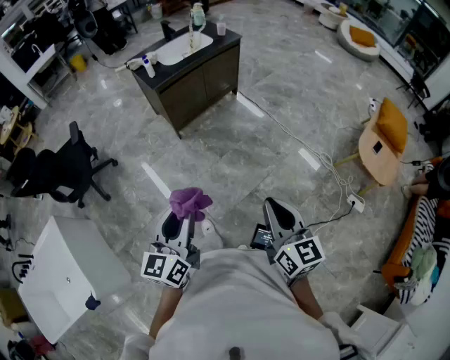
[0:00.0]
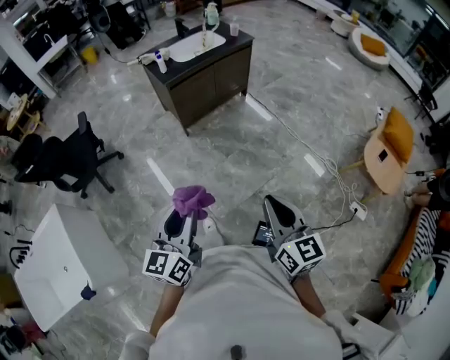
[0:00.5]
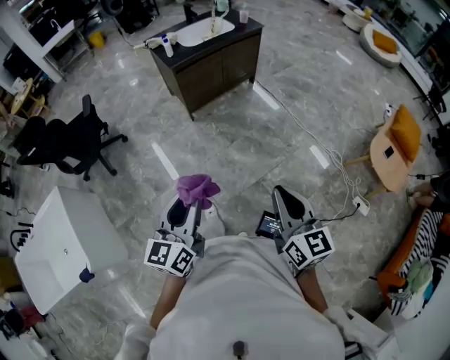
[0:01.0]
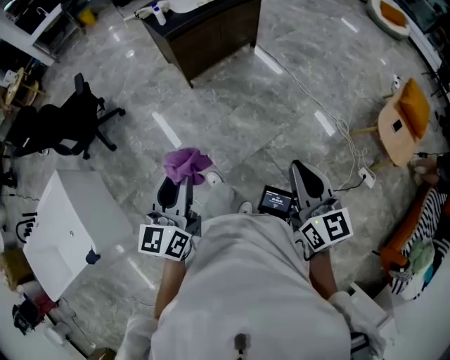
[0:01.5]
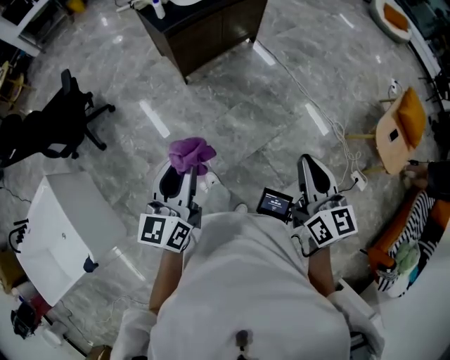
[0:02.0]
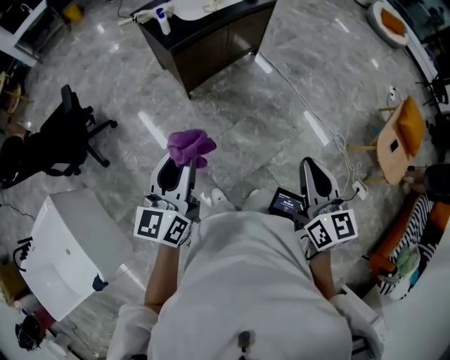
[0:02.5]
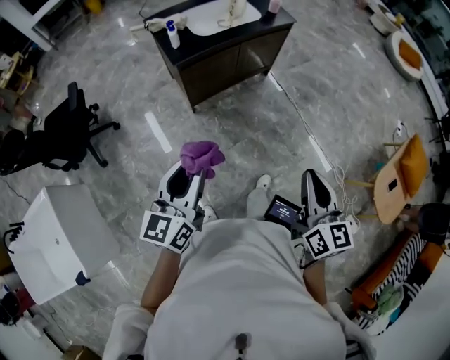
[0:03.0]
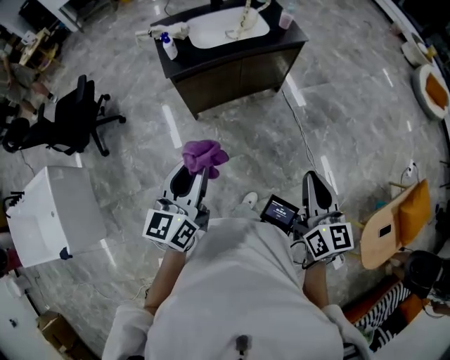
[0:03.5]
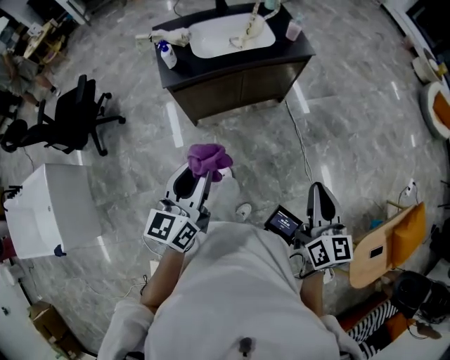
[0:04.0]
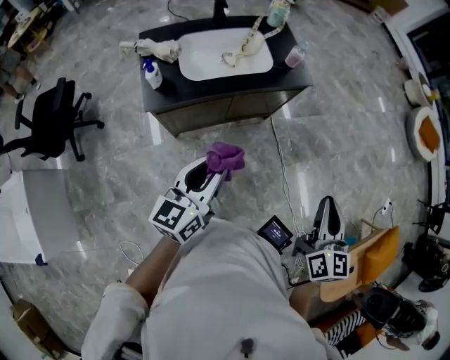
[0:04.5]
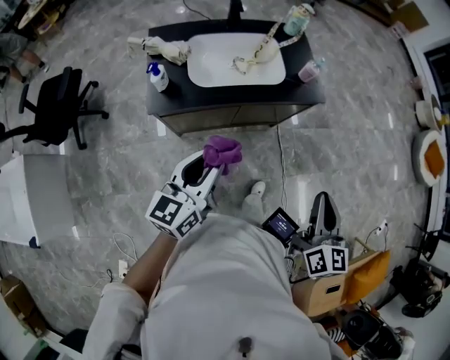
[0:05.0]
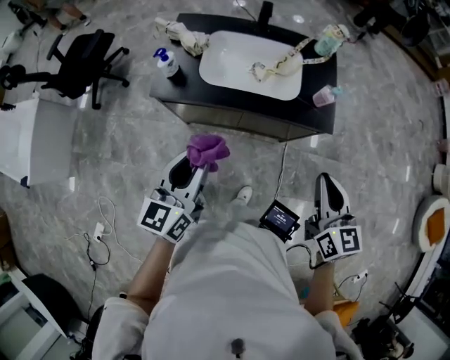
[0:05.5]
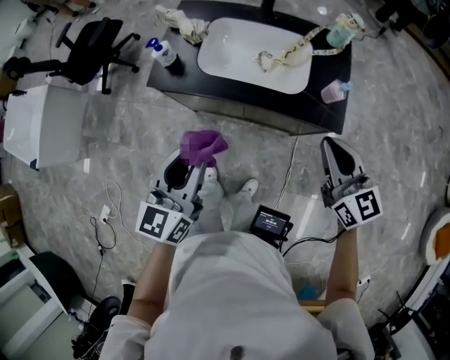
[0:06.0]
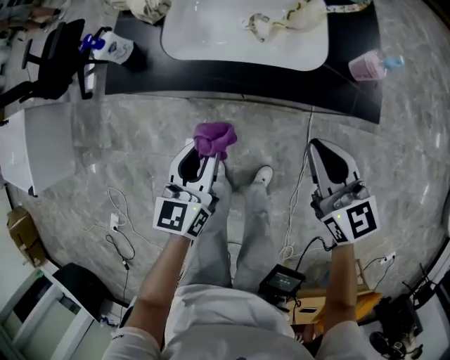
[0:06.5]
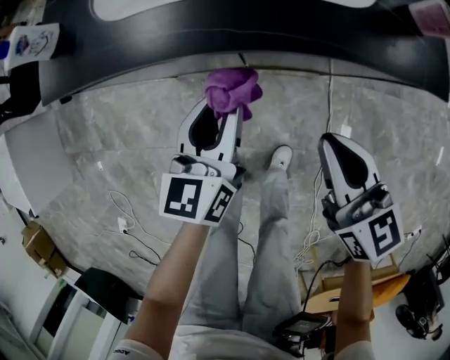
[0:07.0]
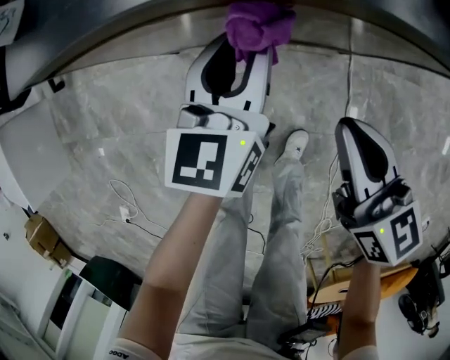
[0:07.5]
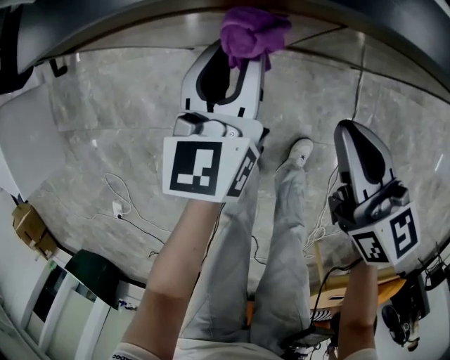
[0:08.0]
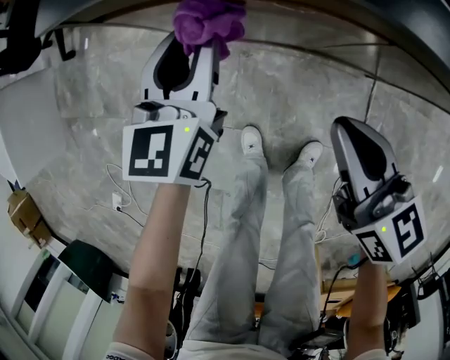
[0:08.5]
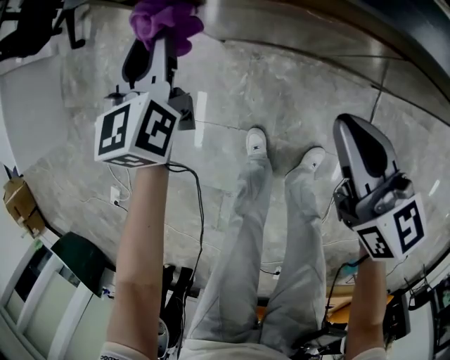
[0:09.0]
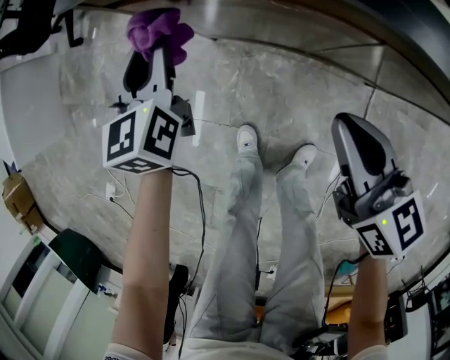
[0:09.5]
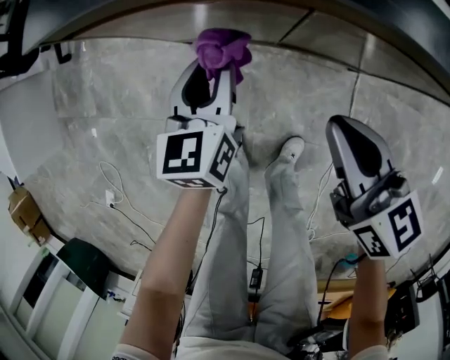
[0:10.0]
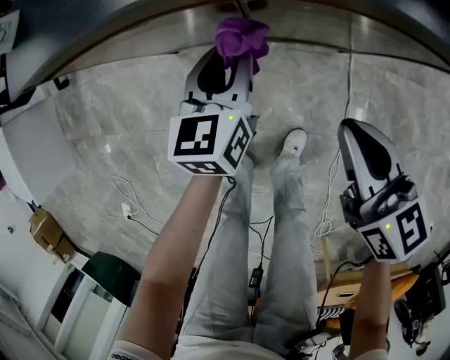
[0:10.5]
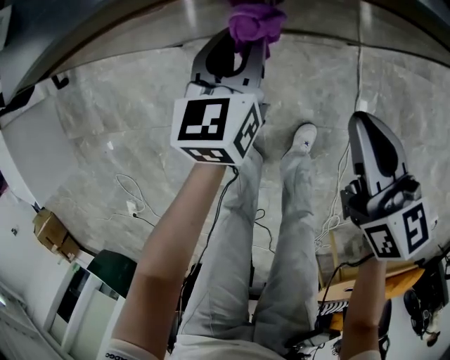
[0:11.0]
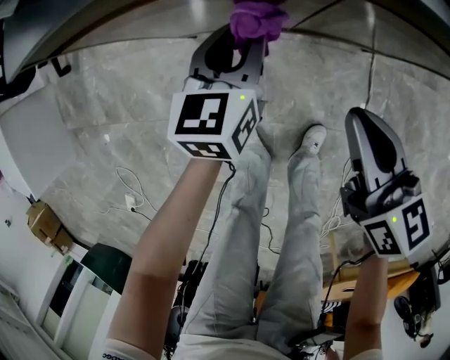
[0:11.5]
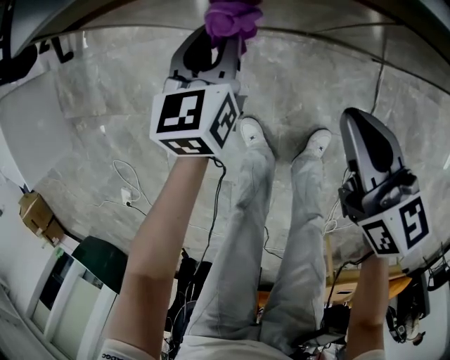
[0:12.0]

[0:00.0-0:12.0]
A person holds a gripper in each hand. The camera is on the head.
0:00.0 to 0:02.0: Both grippers travel together forward, about 10 cm.
0:02.0 to 0:04.0: The two grippers travel together, forward and to the right, approximately 40 cm.
0:04.0 to 0:06.0: The right gripper changes place by some 50 cm, and swivels roughly 50 degrees, while the left gripper changes place by approximately 35 cm, and rotates approximately 30 degrees.
0:06.0 to 0:08.0: The right gripper shifts roughly 50 cm downward and to the left, and swivels about 30 degrees. The left gripper goes roughly 40 cm downward.
0:08.0 to 0:10.0: The right gripper travels to the left and back again, approximately 10 cm each way; the left gripper goes to the left and returns, about 20 cm each way.
0:10.0 to 0:12.0: The left gripper heads to the left and forward, covering approximately 10 cm. Meanwhile the right gripper travels to the left by about 5 cm.

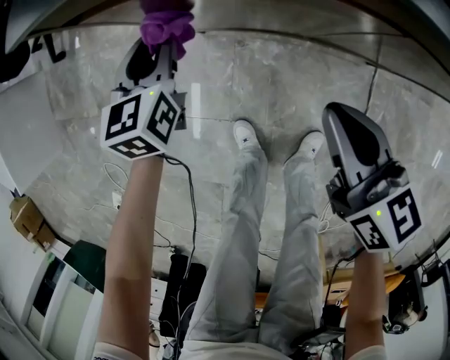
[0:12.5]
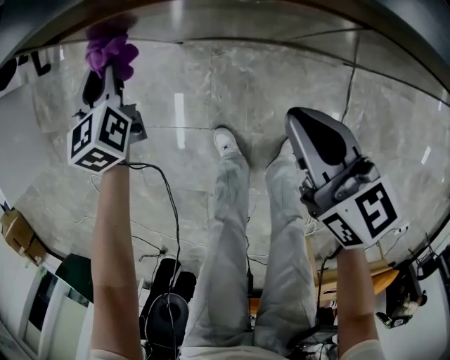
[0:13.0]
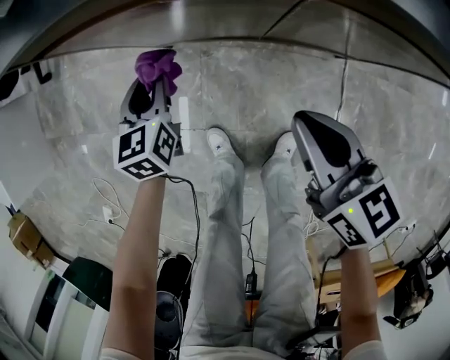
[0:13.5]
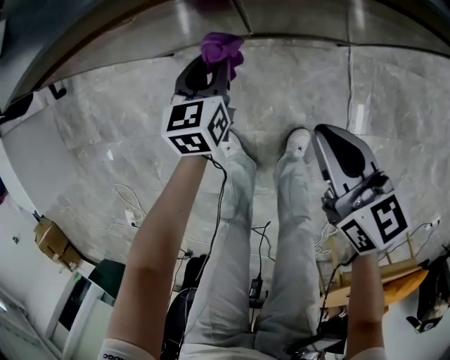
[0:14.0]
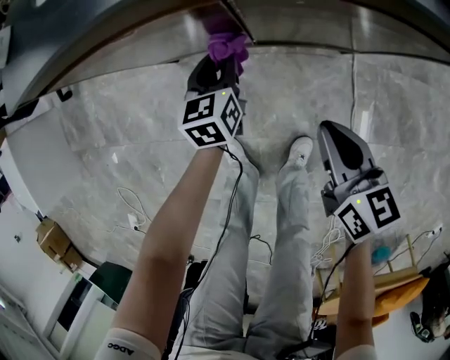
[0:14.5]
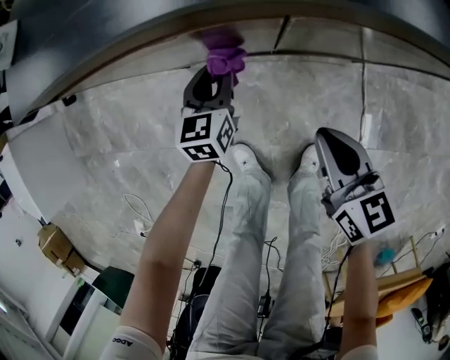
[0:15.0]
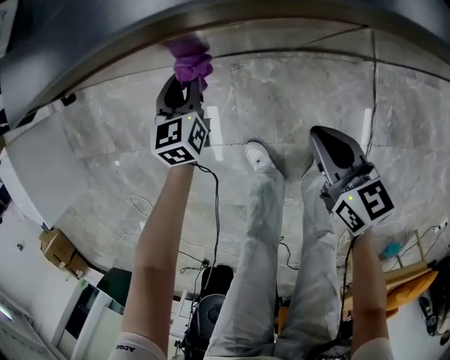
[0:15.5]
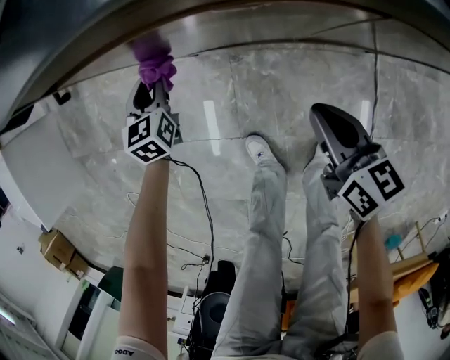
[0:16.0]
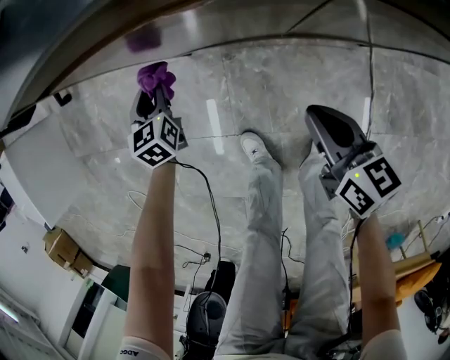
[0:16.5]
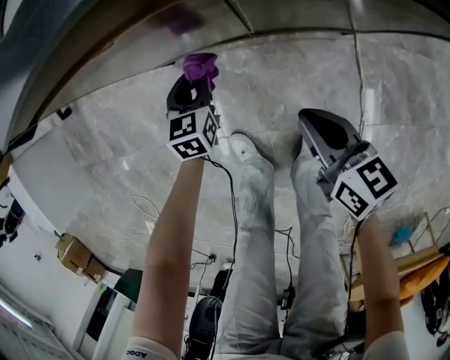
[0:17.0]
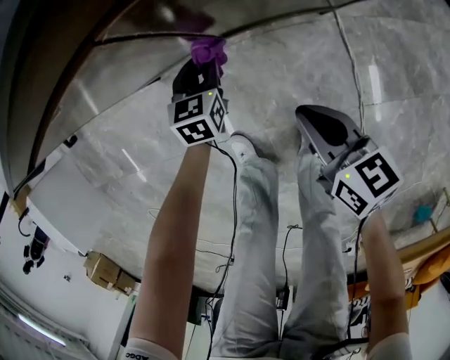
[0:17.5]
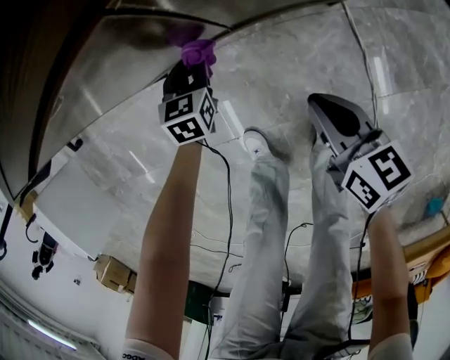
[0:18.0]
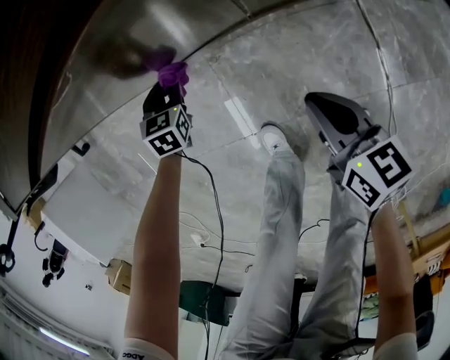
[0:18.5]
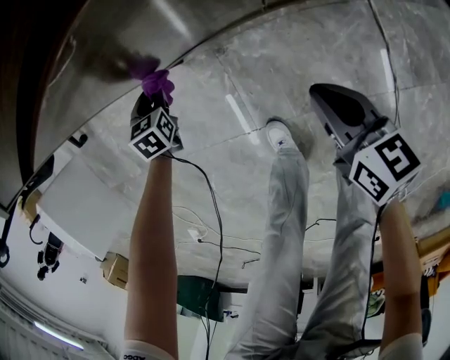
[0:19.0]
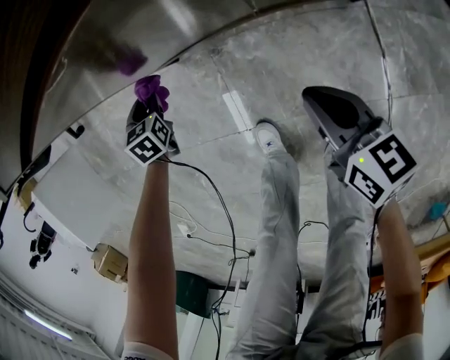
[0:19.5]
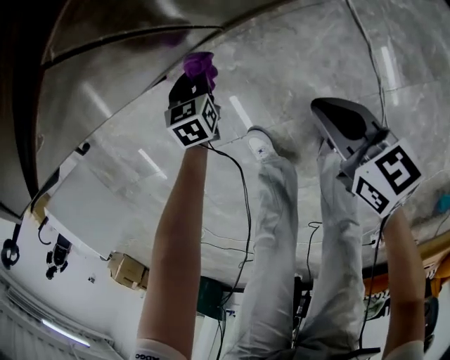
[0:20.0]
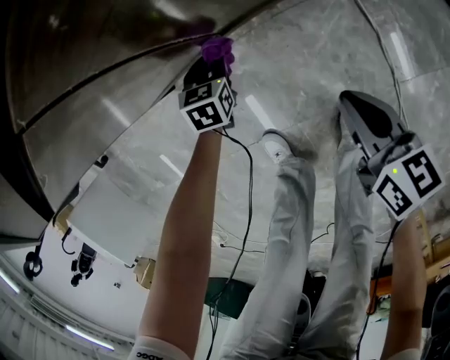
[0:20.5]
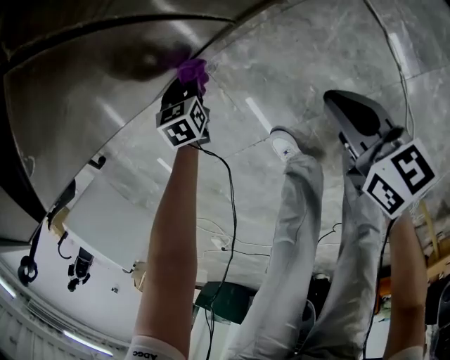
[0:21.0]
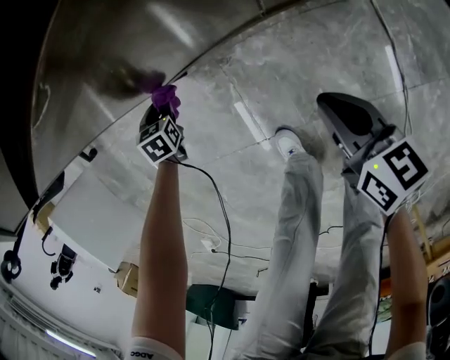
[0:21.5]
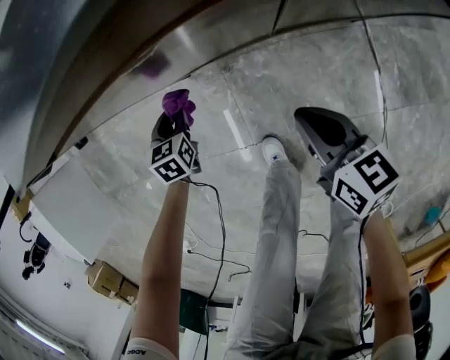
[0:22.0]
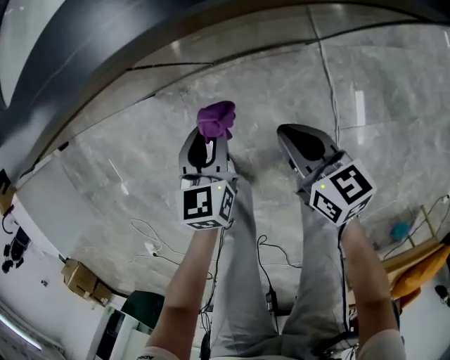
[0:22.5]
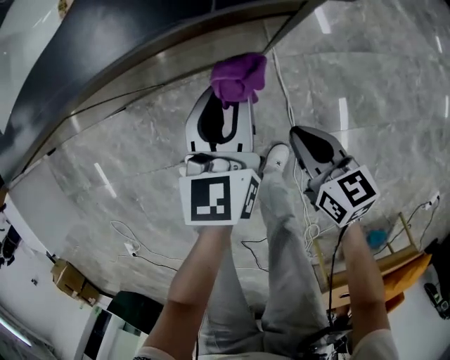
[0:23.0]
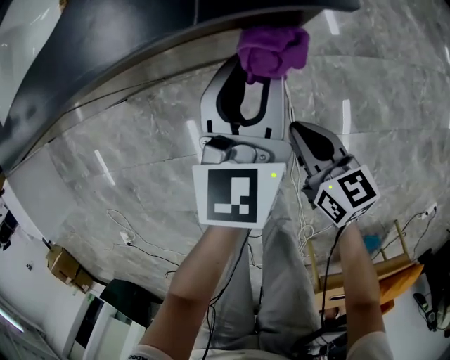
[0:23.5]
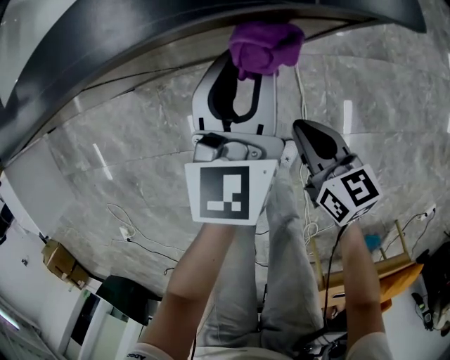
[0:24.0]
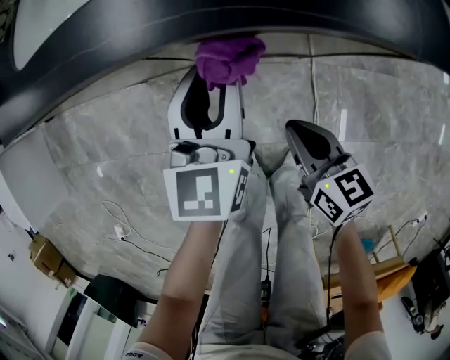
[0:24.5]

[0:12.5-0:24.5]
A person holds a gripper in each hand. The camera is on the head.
0:12.5 to 0:14.5: The right gripper goes approximately 20 cm to the right, backward and downward. The left gripper moves to the right, roughly 25 cm.
0:14.5 to 0:16.5: The left gripper moves to the left, roughly 25 cm. The right gripper moves to the left and forward, about 10 cm.
0:16.5 to 0:18.5: The left gripper shifts approximately 10 cm downward, travels to the right and back again, approximately 30 cm each way, and changes its angle by roughly 30 degrees. The right gripper moves downward, about 5 cm, and moves some 10 cm to the right and comes back.
0:18.5 to 0:20.5: The left gripper ends up some 20 cm from where it was. Meanwhile the right gripper moves about 15 cm.
0:20.5 to 0:22.5: The left gripper goes some 25 cm upward and backward, moves roughly 30 cm to the left and comes back, and changes its angle by some 20 degrees. The right gripper goes some 10 cm upward, and goes to the left and returns, some 15 cm each way.
0:22.5 to 0:24.5: The left gripper goes roughly 20 cm upward and forward, moves some 35 cm to the right and comes back, and rotates about 20 degrees, while the right gripper reaches about 25 cm to the right, then returns.

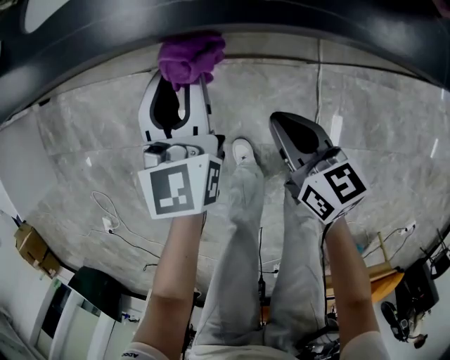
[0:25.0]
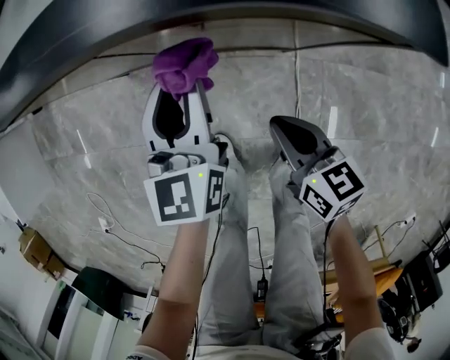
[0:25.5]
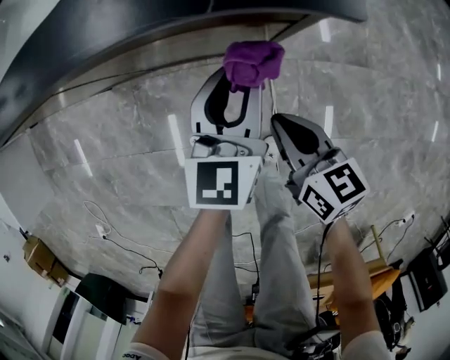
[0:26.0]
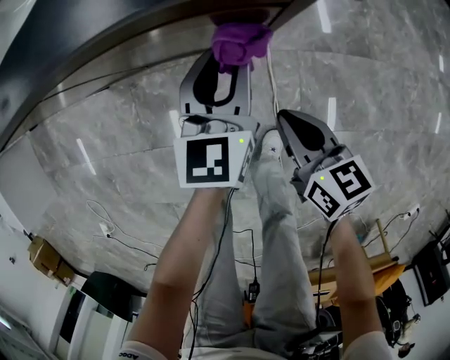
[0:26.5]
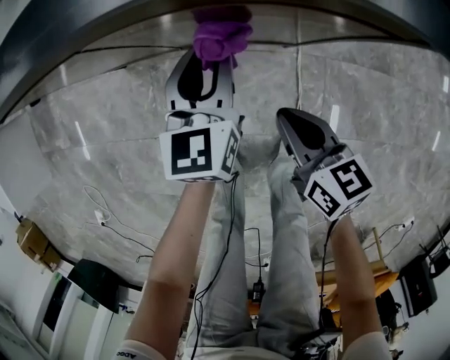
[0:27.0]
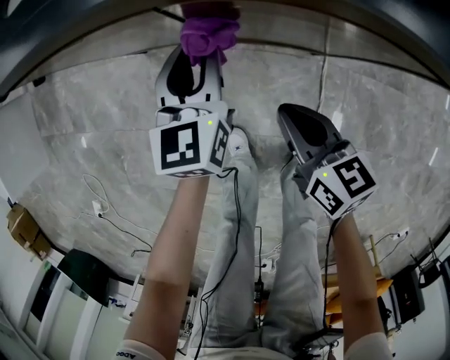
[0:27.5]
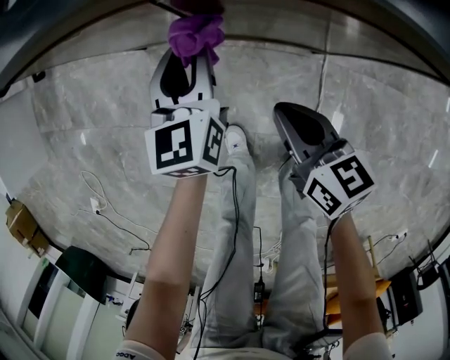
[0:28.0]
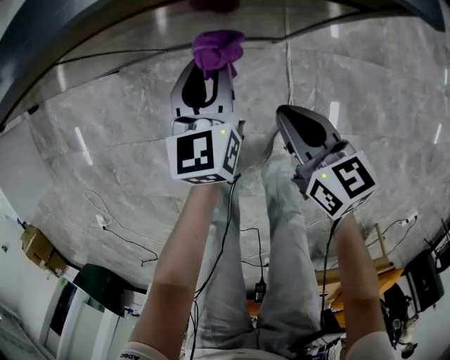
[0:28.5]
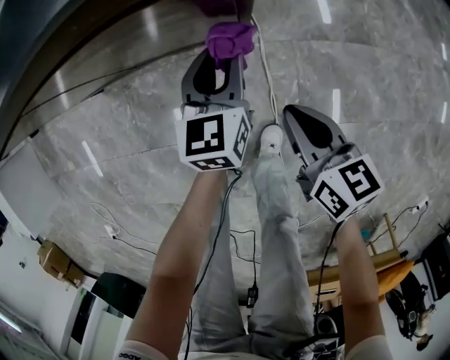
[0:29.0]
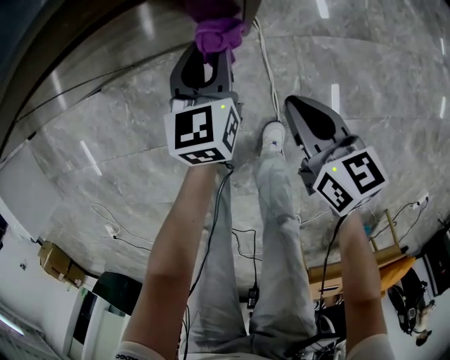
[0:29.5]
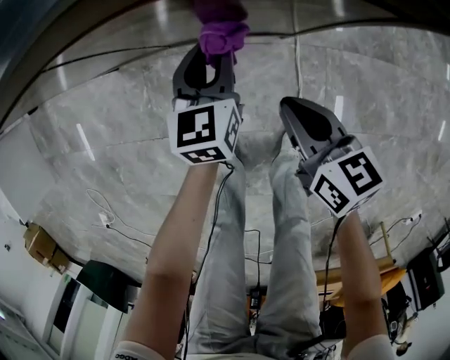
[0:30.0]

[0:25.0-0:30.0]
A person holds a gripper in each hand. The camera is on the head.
0:25.0 to 0:27.5: The left gripper is displaced downward by approximately 10 cm, and moves approximately 30 cm to the right and comes back; the right gripper moves some 25 cm to the right and comes back.
0:27.5 to 0:30.0: The right gripper goes about 10 cm to the right. Meanwhile the left gripper travels to the right and downward by some 15 cm.
